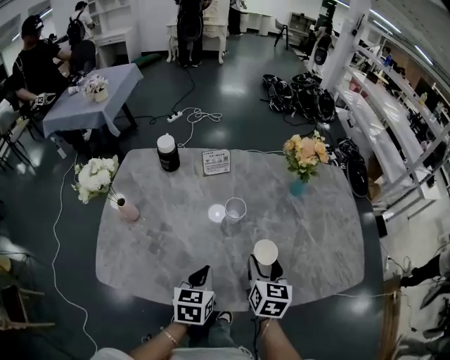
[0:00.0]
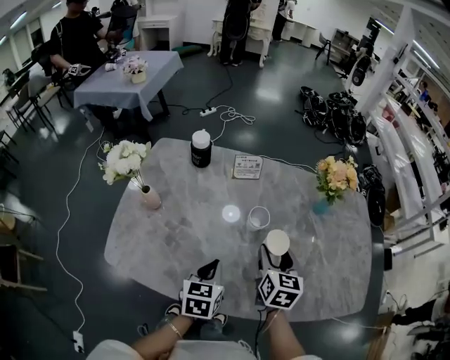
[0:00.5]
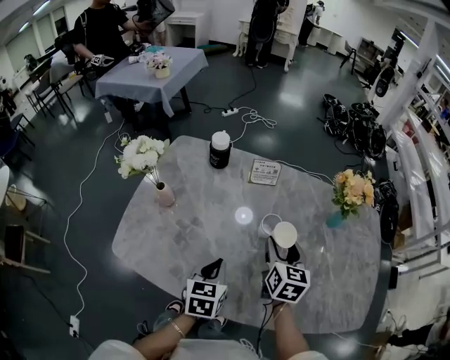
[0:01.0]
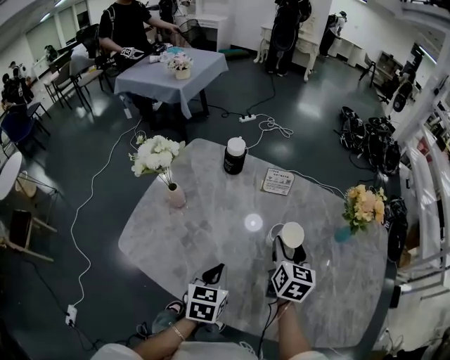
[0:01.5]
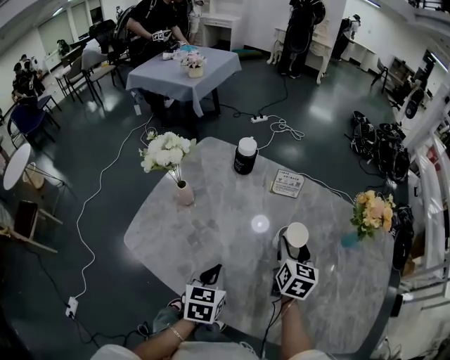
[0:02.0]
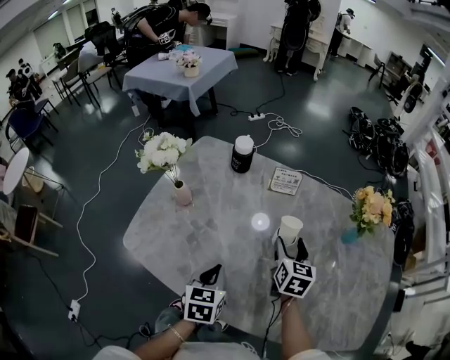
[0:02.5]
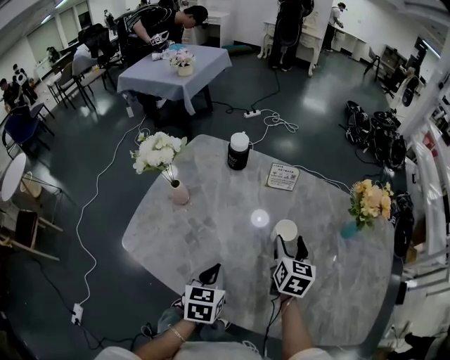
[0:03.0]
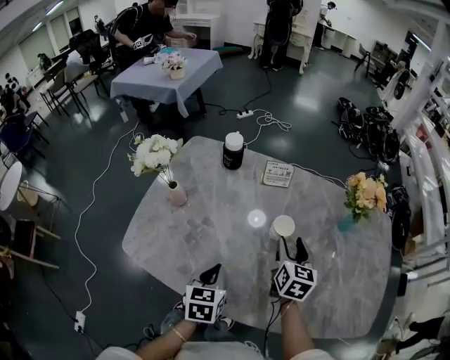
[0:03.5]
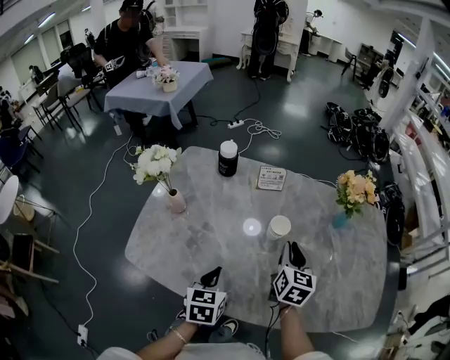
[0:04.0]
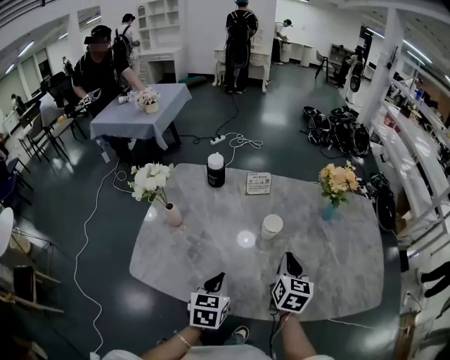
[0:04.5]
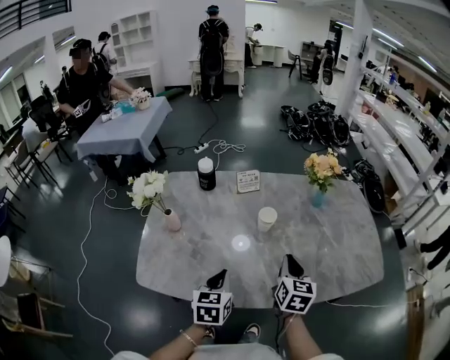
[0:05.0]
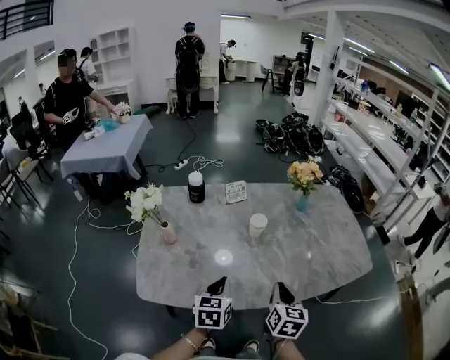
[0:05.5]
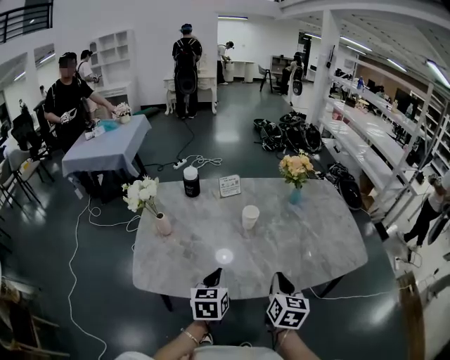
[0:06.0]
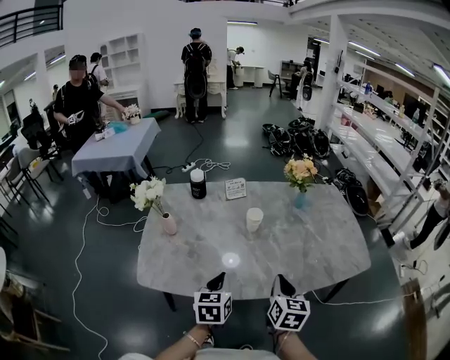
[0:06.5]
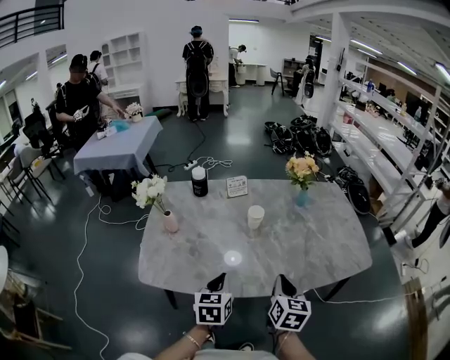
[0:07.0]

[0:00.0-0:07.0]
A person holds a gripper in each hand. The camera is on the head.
0:00.0 to 0:02.0: The right gripper shifts approximately 15 cm forward and to the left; the left gripper heads to the left, covering roughly 5 cm, and turns by about 20 degrees.
0:02.0 to 0:03.5: The grippers move only a little.
0:03.5 to 0:05.0: The right gripper travels backward by some 15 cm, and closes, while the left gripper goes roughly 10 cm upward and backward.
0:05.0 to 0:07.0: The right gripper goes roughly 15 cm backward; the left gripper heads backward, covering roughly 5 cm.

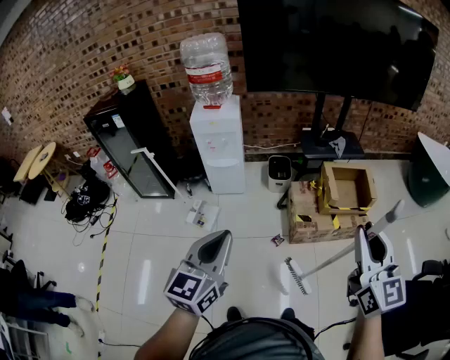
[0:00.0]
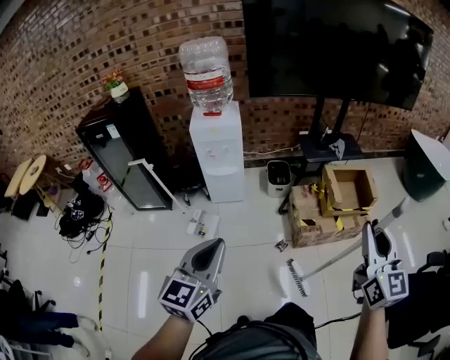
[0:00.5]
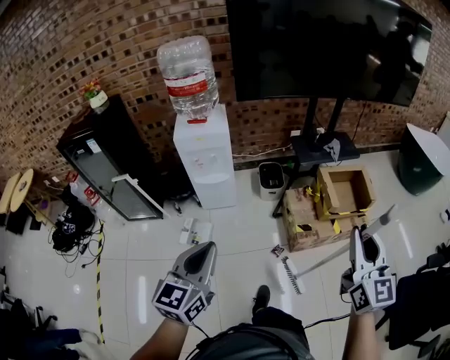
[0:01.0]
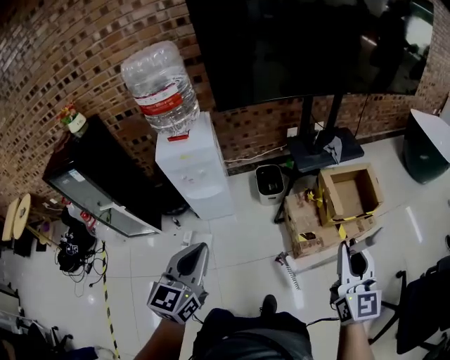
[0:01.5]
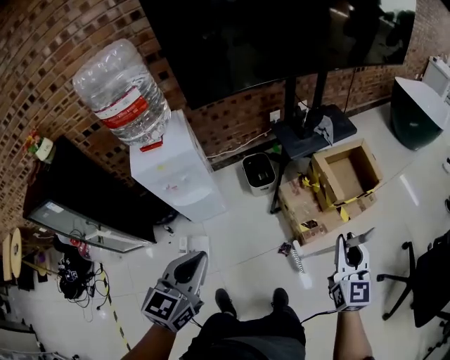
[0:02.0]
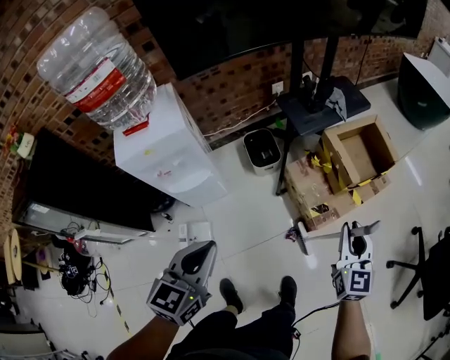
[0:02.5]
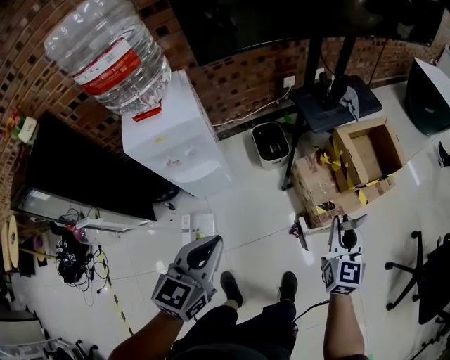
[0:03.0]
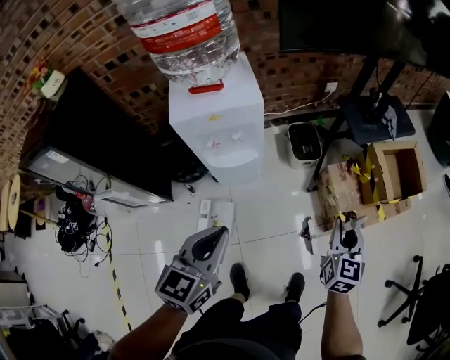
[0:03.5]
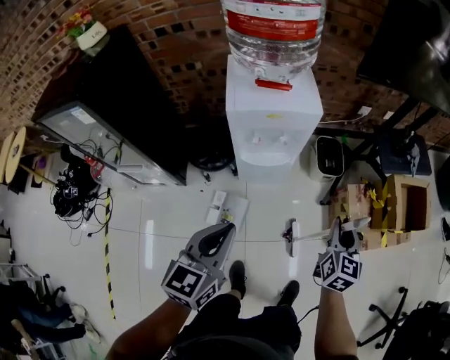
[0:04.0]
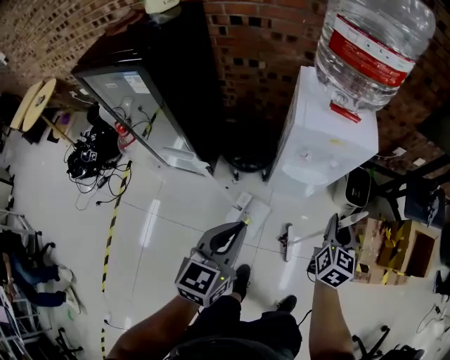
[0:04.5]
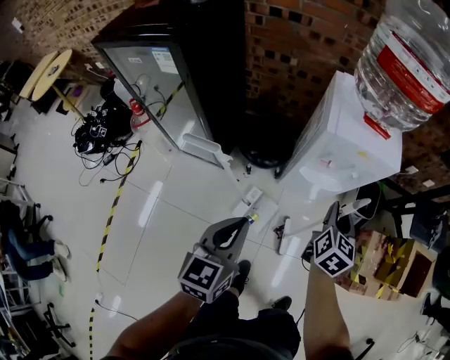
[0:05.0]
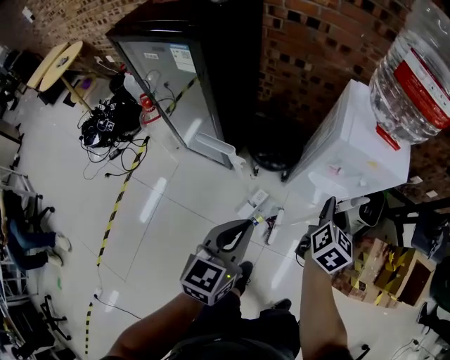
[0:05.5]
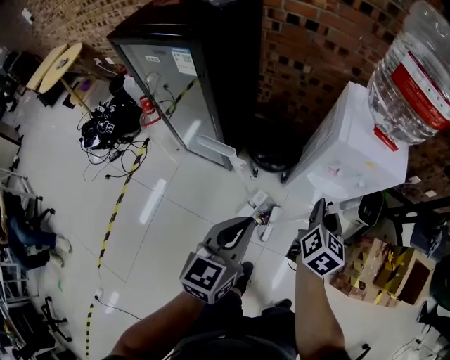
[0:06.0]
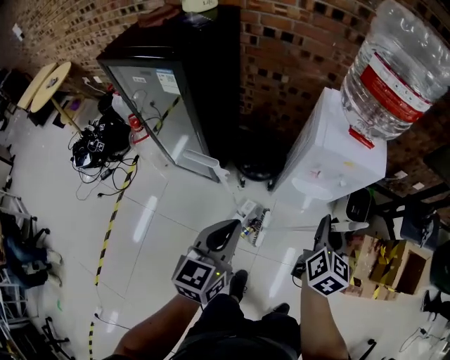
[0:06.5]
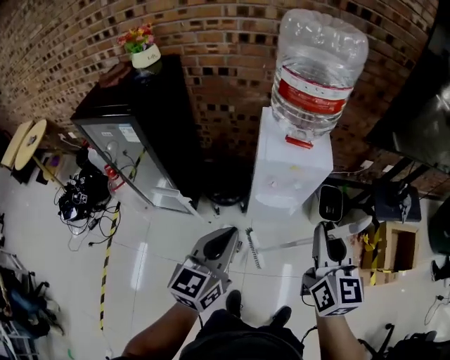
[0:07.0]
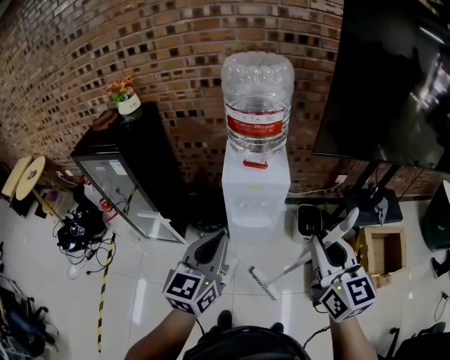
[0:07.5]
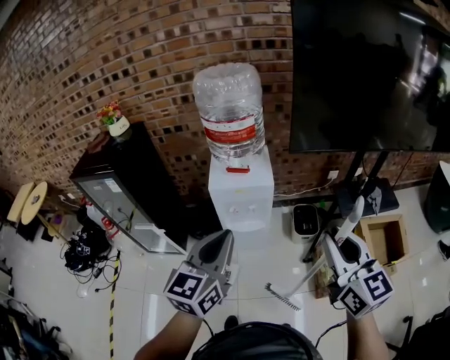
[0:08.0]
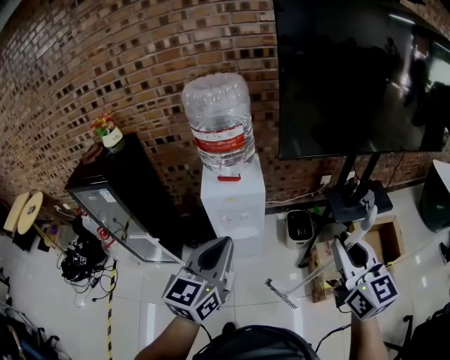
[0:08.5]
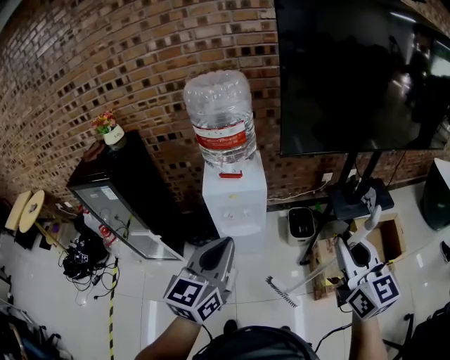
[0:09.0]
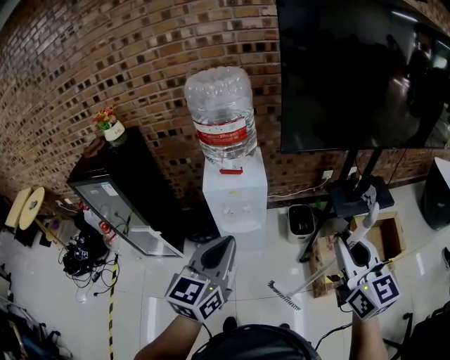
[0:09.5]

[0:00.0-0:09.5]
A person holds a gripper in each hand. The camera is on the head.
0:00.0 to 0:02.0: The left gripper goes approximately 40 cm forward and to the left, and turns by approximately 20 degrees. Meanwhile the right gripper goes roughly 40 cm forward and downward, and rotates approximately 30 degrees.
0:02.0 to 0:04.0: Both grippers travel together to the left, roughly 40 cm.
0:04.0 to 0:05.5: The left gripper travels to the left by roughly 25 cm, and changes its angle by roughly 20 degrees, while the right gripper moves to the left, about 35 cm.
0:05.5 to 0:07.5: The left gripper shifts approximately 35 cm to the right and upward. Meanwhile the right gripper moves upward, to the right and backward, roughly 50 cm, and turns by approximately 30 degrees.
0:07.5 to 0:09.5: The grippers both shift to the right by approximately 15 cm.

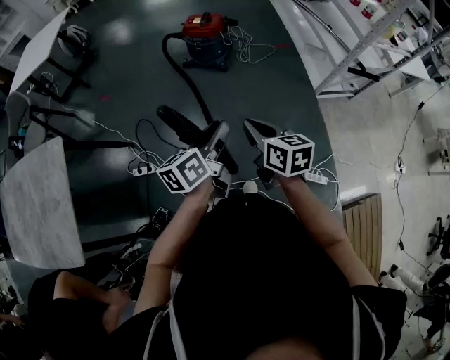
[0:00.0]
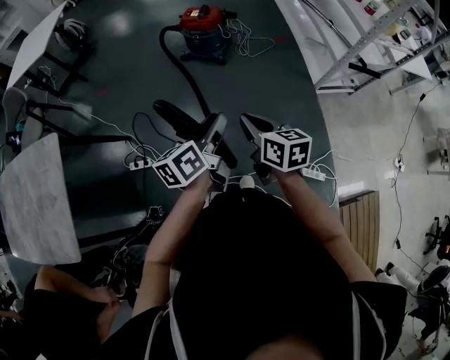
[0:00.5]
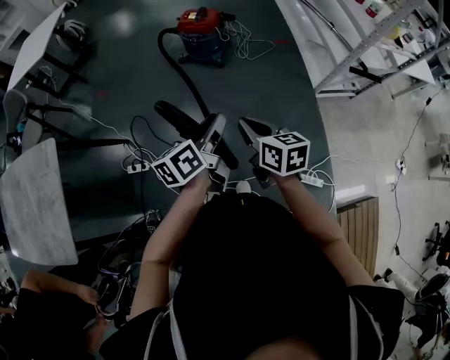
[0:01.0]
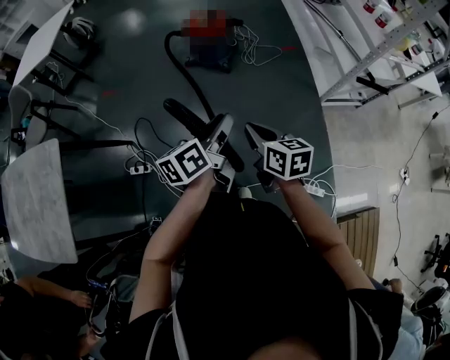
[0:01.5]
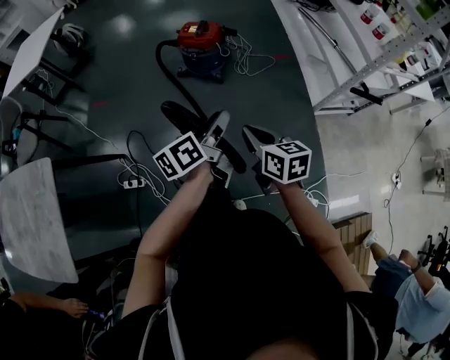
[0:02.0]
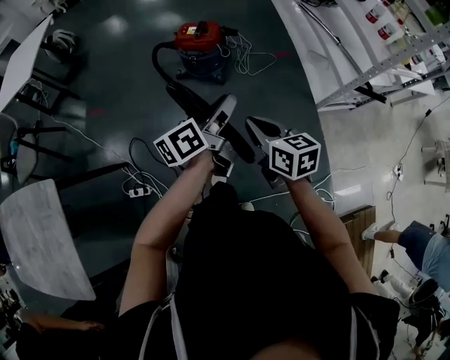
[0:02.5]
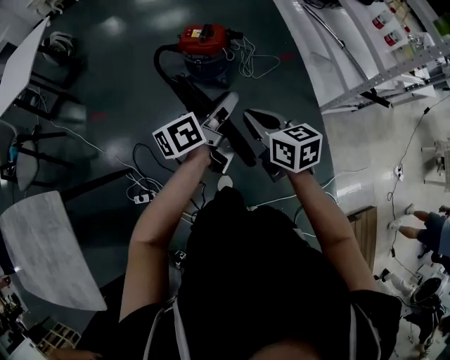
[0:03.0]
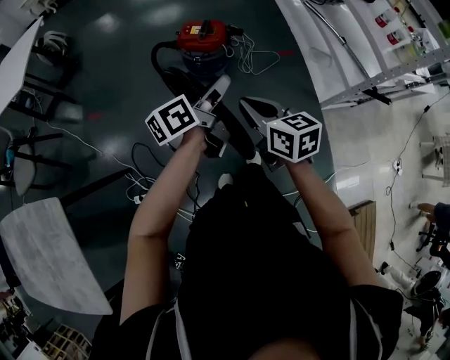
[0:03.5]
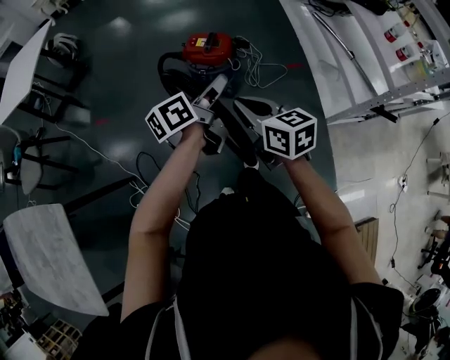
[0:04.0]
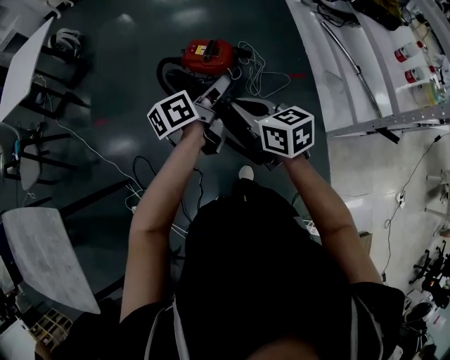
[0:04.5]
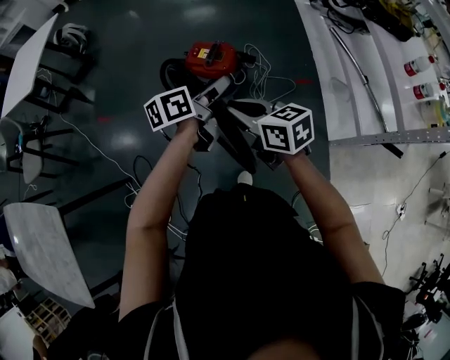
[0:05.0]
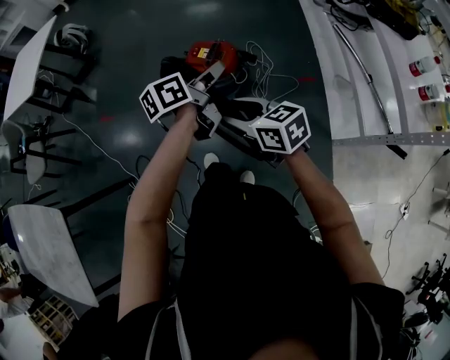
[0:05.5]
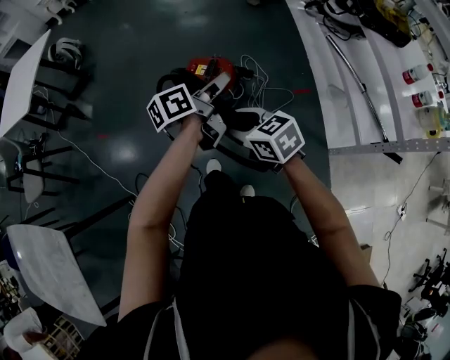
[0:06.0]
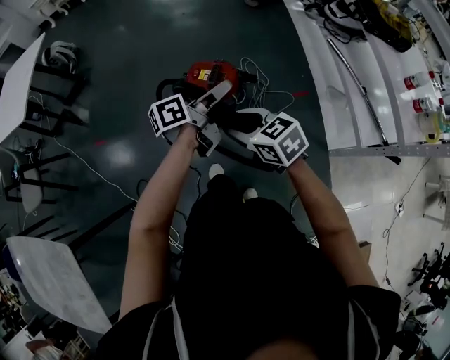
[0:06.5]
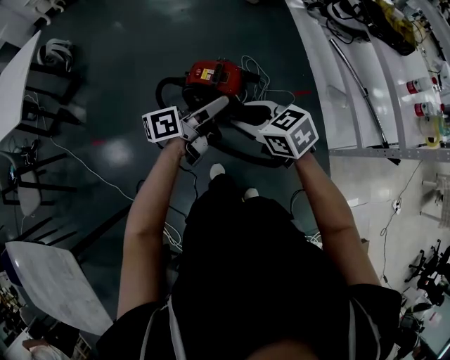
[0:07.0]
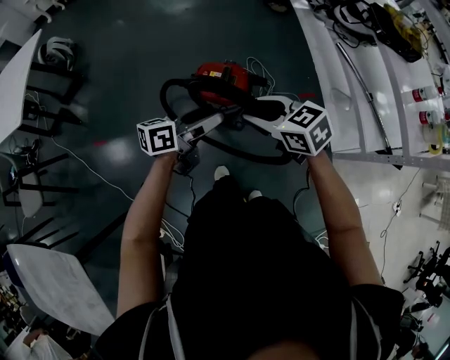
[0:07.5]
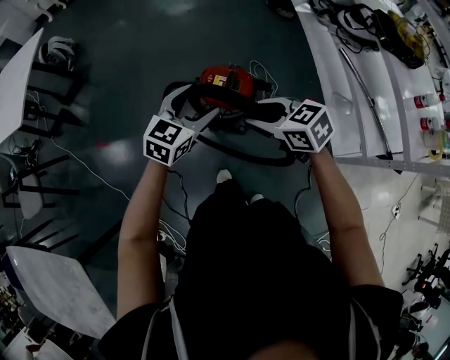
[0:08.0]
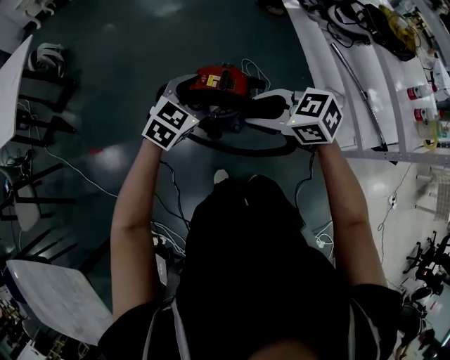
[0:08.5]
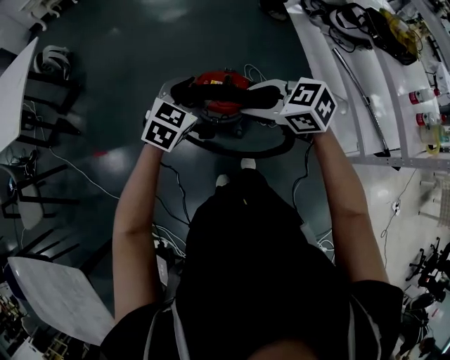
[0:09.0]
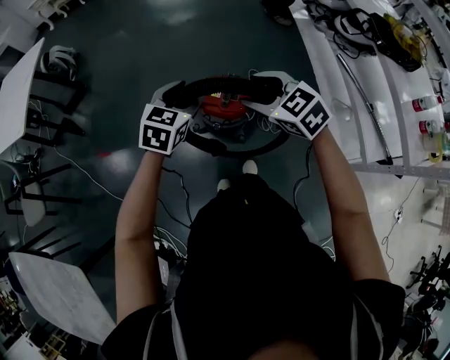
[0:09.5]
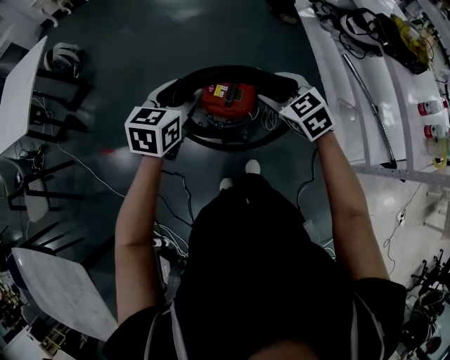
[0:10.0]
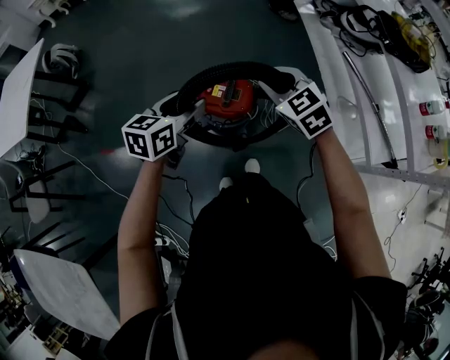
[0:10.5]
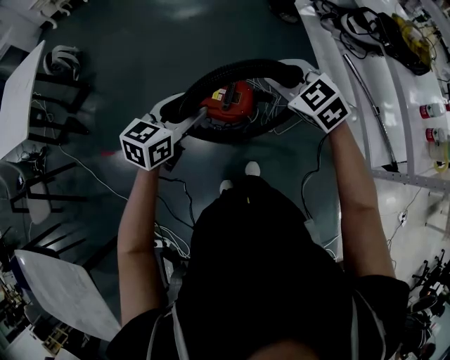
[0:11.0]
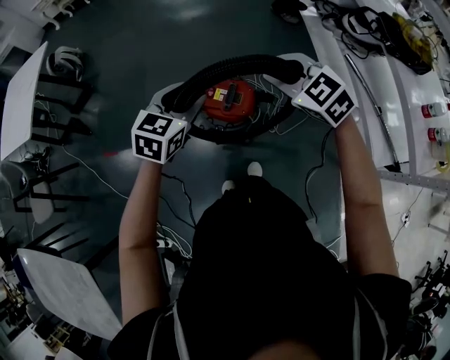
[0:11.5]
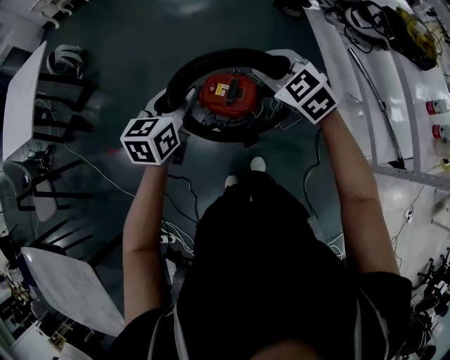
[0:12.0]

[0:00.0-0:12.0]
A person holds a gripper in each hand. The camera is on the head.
0:00.0 to 0:02.0: Both grippers move forward, roughly 15 cm.
0:02.0 to 0:04.0: The two grippers go some 25 cm forward.
0:04.0 to 0:06.0: The right gripper is displaced forward by approximately 15 cm, rotates some 20 degrees, and opens up. The left gripper is displaced forward and to the right by approximately 25 cm.
0:06.0 to 0:08.0: The left gripper travels to the left and forward by roughly 15 cm, rotates around the line of its fingers by roughly 60 degrees, clockwise from behind, and opens up, while the right gripper moves forward and to the left, about 15 cm.
0:08.0 to 0:10.0: The left gripper is displaced forward by some 5 cm; the right gripper is displaced forward and to the right by about 15 cm, and turns by some 30 degrees.
0:10.0 to 0:12.0: The right gripper ends up approximately 5 cm from where it was, and closes its fingers.
